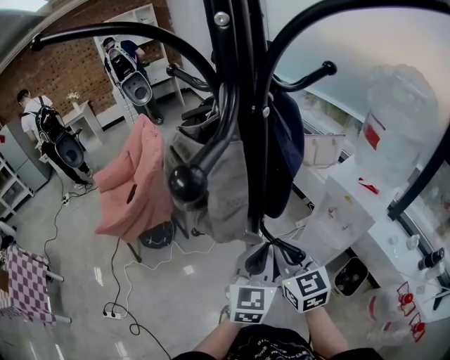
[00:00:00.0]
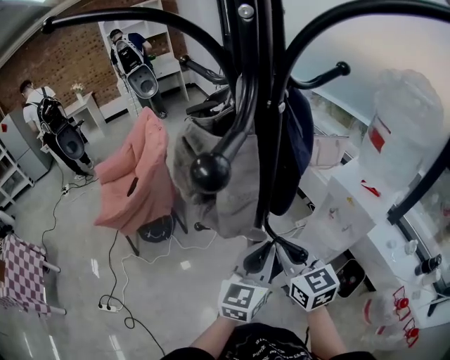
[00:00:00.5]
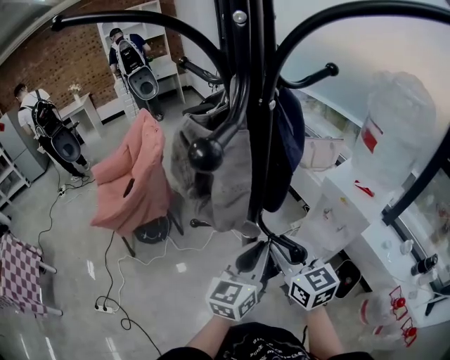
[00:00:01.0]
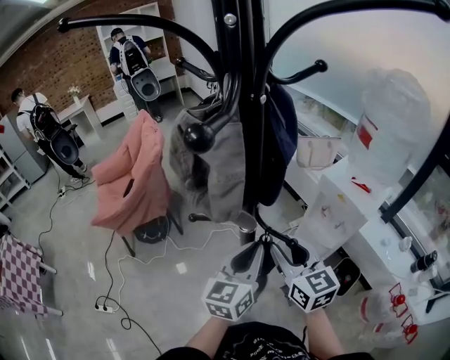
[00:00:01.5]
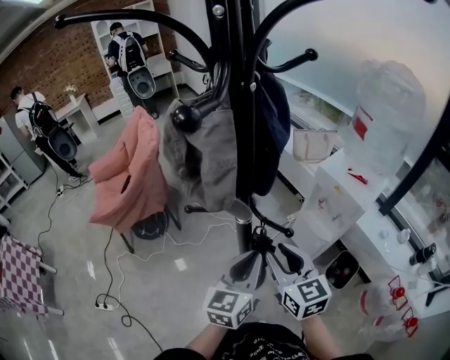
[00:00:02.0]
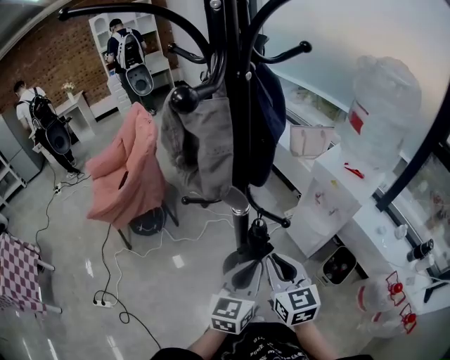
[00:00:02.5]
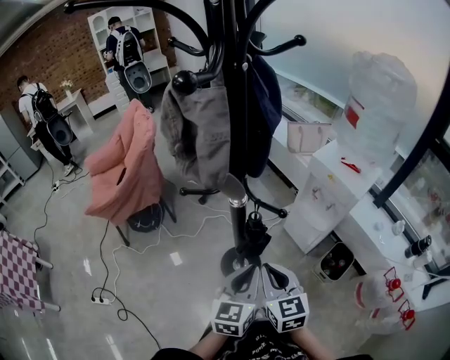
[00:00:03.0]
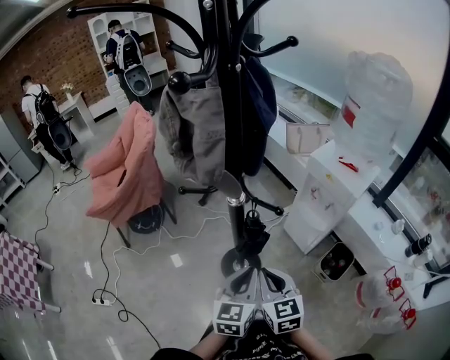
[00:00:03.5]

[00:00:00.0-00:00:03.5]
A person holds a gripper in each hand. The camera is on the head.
00:00:00.0 to 00:00:02.0: The two grippers go approximately 5 cm backward. The right gripper opens.
00:00:02.0 to 00:00:03.5: The right gripper heads backward and downward, covering roughly 10 cm, and closes its fingers; the left gripper is displaced downward and backward by some 10 cm.

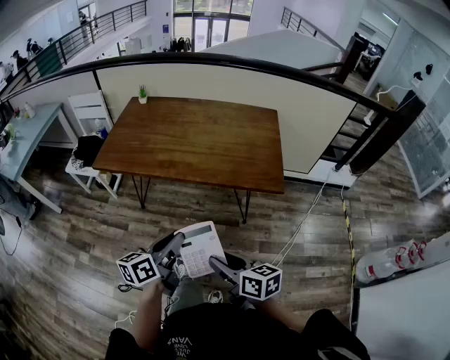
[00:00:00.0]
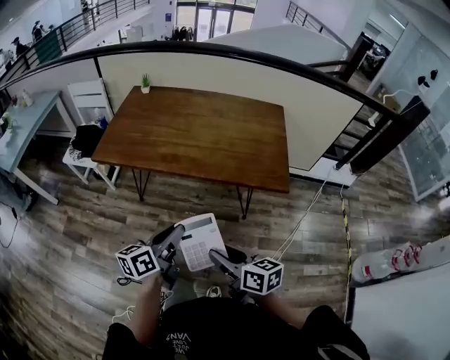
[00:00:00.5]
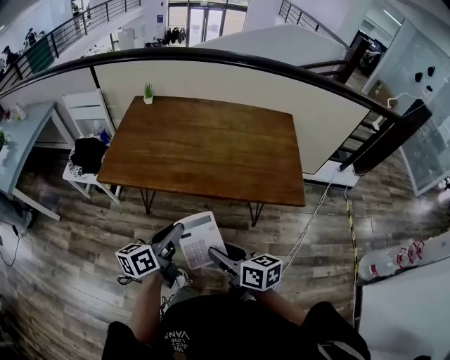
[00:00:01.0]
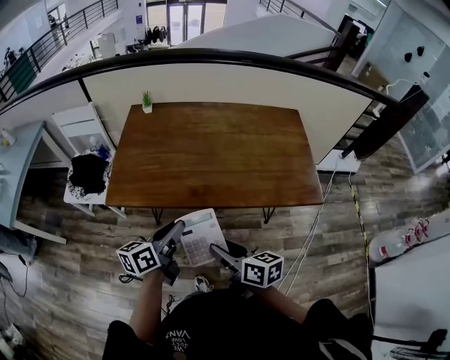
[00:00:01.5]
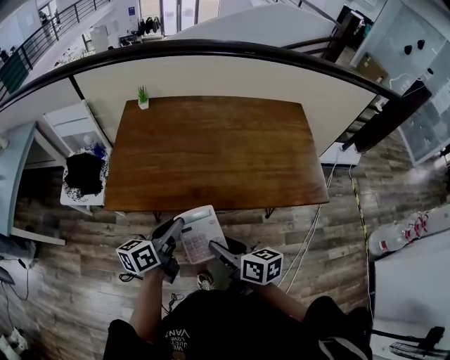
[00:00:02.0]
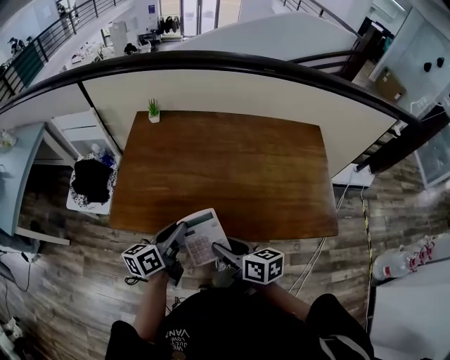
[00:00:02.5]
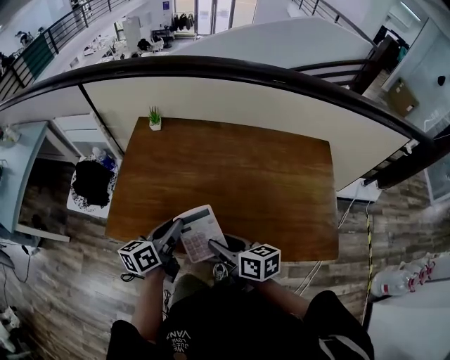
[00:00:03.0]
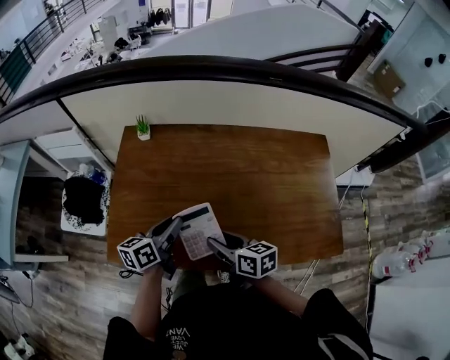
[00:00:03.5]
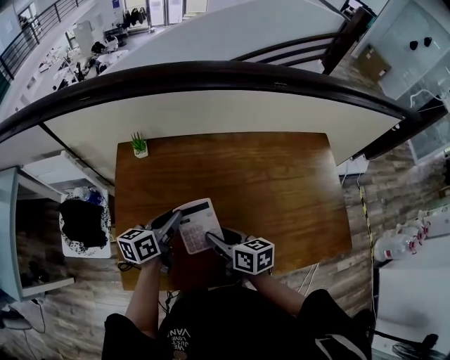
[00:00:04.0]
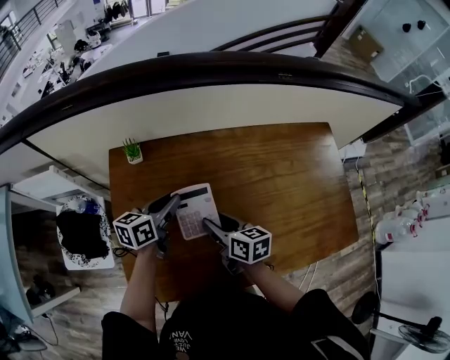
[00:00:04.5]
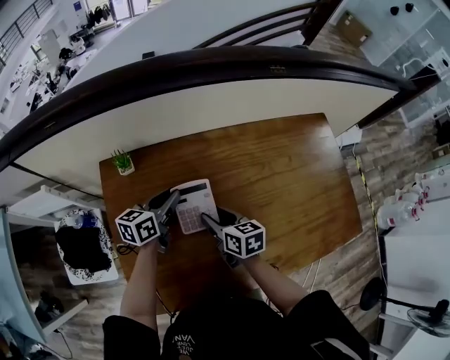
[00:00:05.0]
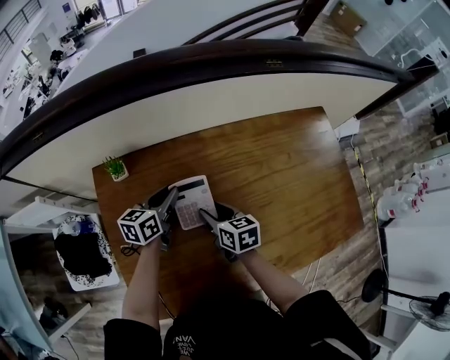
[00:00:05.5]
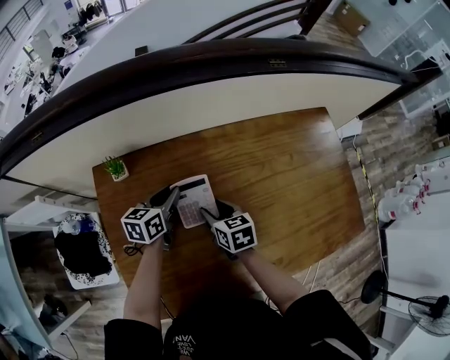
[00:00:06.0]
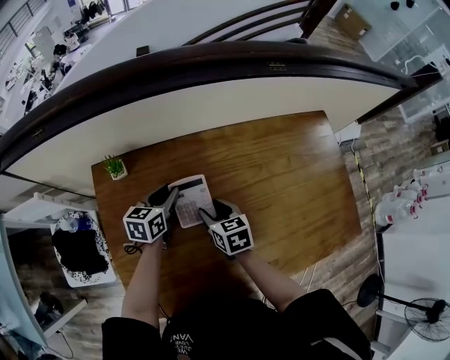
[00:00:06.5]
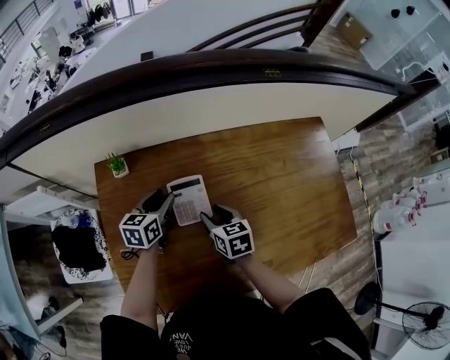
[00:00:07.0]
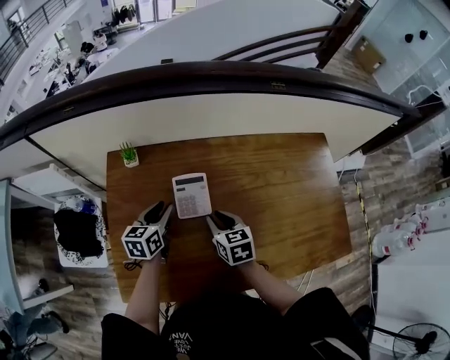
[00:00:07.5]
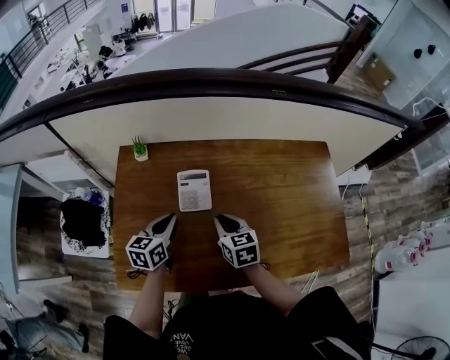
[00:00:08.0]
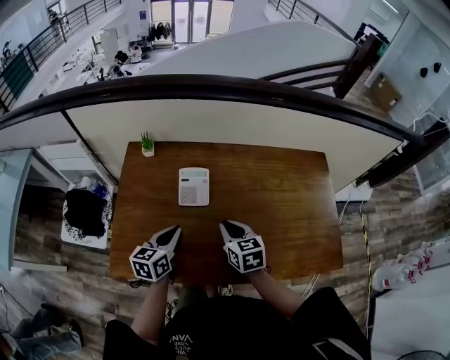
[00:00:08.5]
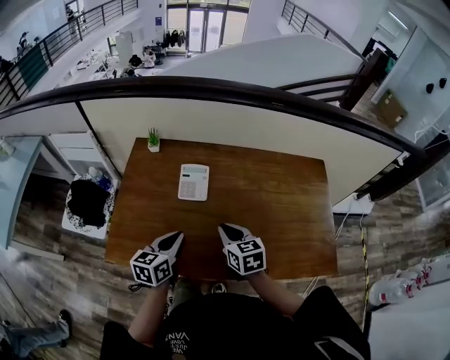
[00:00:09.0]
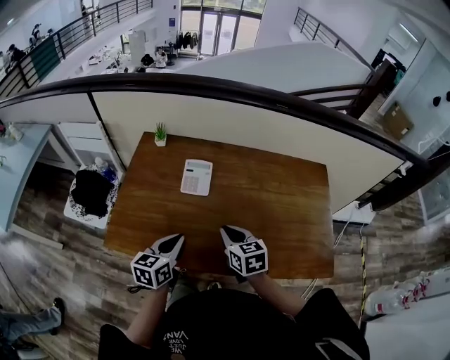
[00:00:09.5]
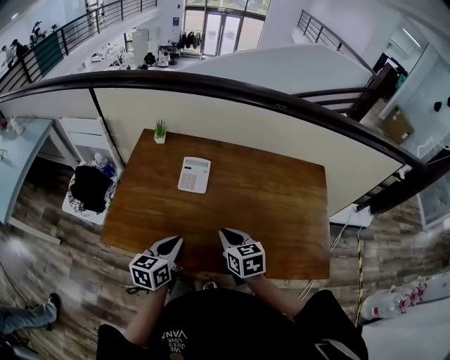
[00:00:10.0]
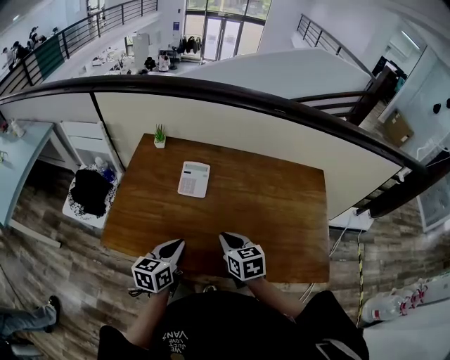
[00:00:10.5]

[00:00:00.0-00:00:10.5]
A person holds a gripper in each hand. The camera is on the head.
00:00:00.0 to 00:00:02.0: Both grippers travel together forward and to the left, approximately 35 cm.
00:00:02.0 to 00:00:04.0: Both grippers travel together forward, roughly 35 cm.
00:00:04.0 to 00:00:06.5: Both grippers travel together forward and downward, about 15 cm. The left gripper swivels about 20 degrees; the right gripper turns by some 20 degrees.
00:00:06.5 to 00:00:08.5: The right gripper moves backward, upward and to the right, approximately 15 cm, and closes its fingers, while the left gripper moves backward, approximately 25 cm.
00:00:08.5 to 00:00:10.5: The left gripper shifts about 10 cm backward and to the right; the right gripper shifts about 10 cm backward.

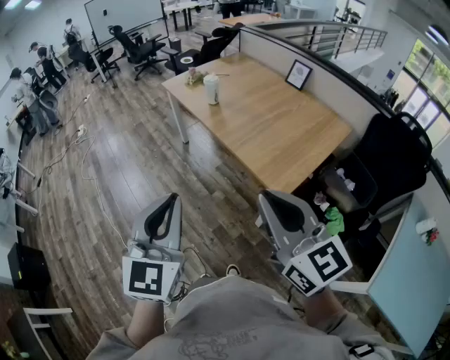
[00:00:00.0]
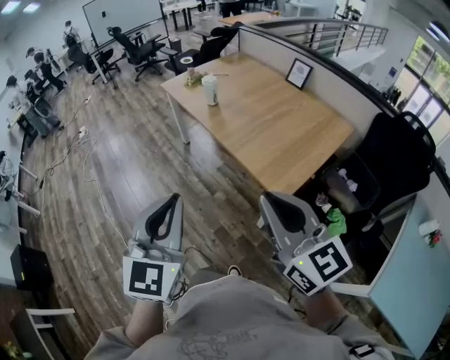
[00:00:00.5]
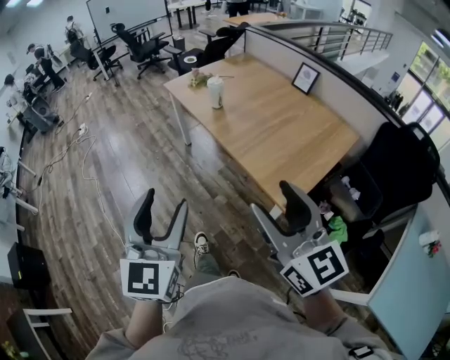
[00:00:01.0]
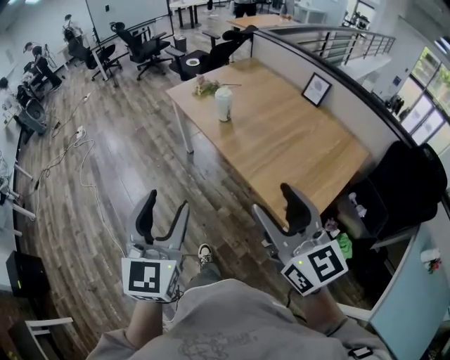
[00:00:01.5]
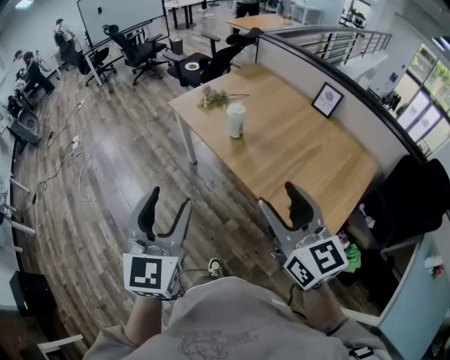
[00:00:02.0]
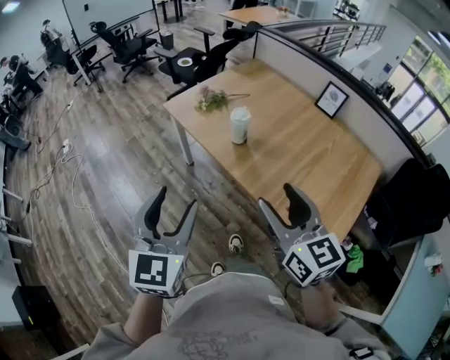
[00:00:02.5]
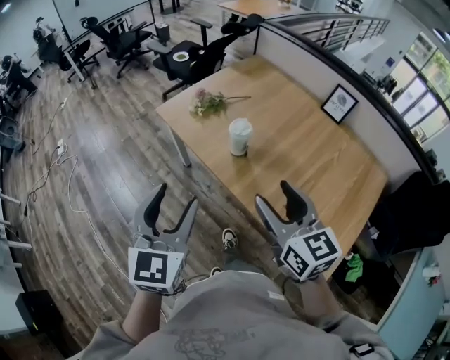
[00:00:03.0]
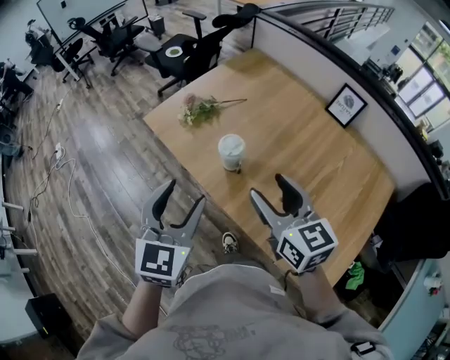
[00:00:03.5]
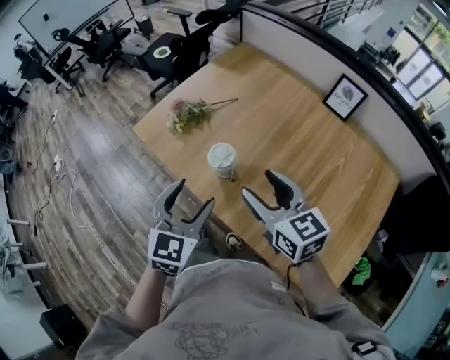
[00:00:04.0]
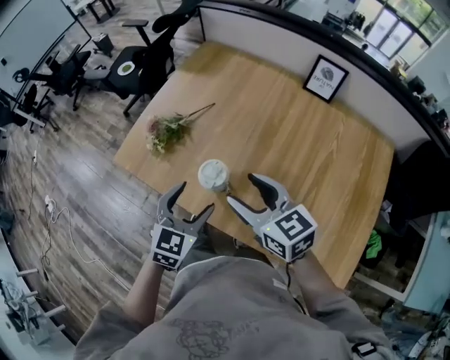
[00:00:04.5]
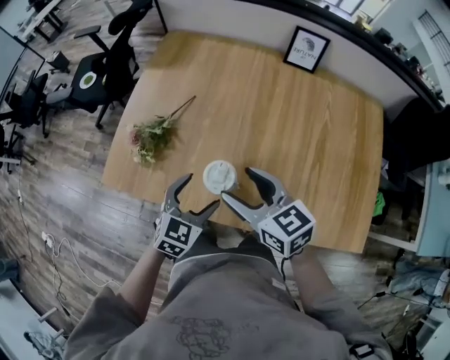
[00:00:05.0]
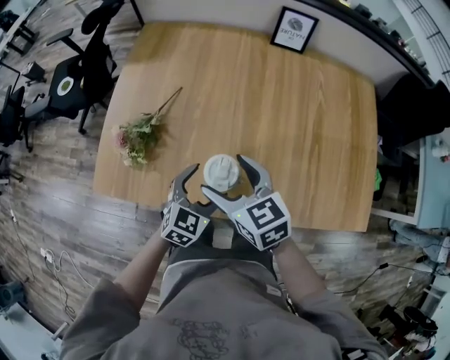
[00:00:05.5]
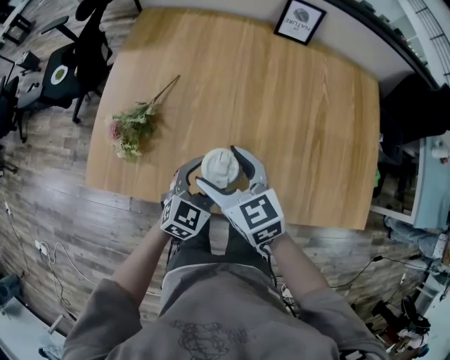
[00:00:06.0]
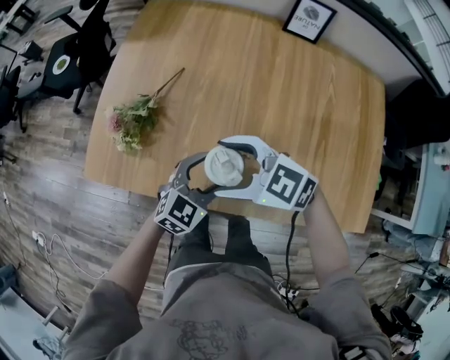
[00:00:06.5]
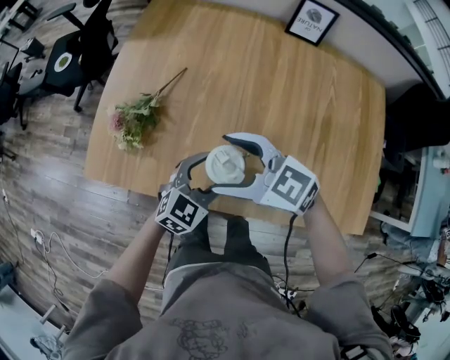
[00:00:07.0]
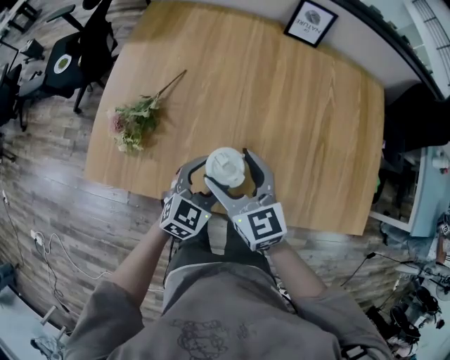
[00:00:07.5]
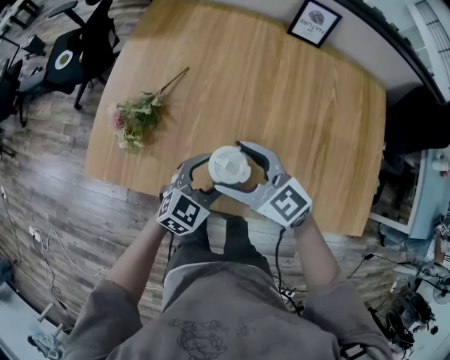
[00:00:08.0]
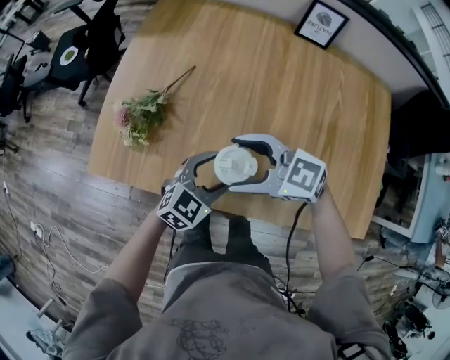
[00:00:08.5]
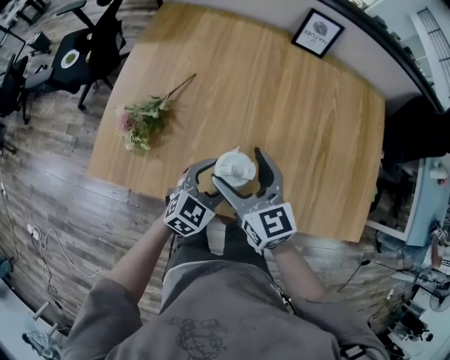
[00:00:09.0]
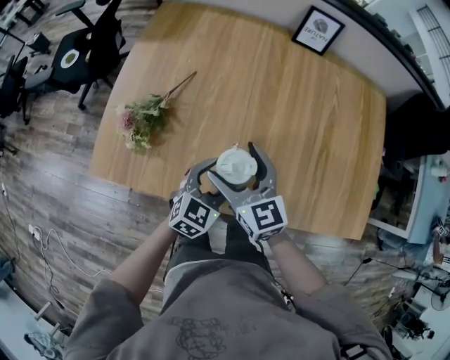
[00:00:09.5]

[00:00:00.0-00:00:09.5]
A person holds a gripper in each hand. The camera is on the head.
00:00:00.0 to 00:00:02.0: The grippers both shift forward by about 35 cm. The right gripper opens. The left gripper opens its fingers.
00:00:02.0 to 00:00:04.0: The two grippers travel together, forward, approximately 40 cm. The left gripper swivels about 30 degrees.
00:00:04.0 to 00:00:05.5: The left gripper shifts roughly 20 cm downward, and turns by about 50 degrees. The right gripper moves about 20 cm, and turns by some 30 degrees.

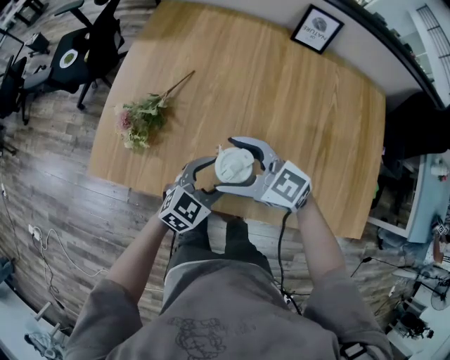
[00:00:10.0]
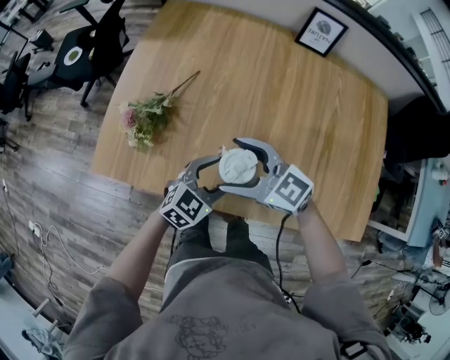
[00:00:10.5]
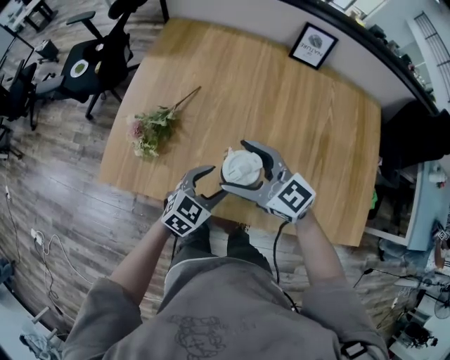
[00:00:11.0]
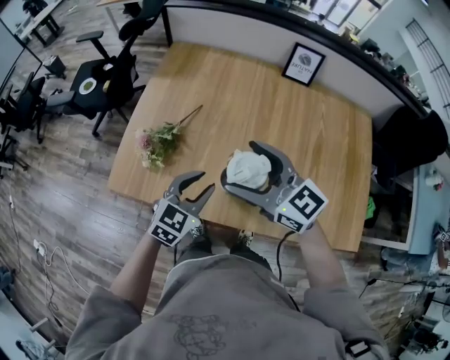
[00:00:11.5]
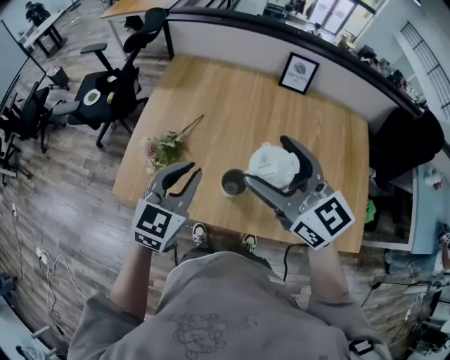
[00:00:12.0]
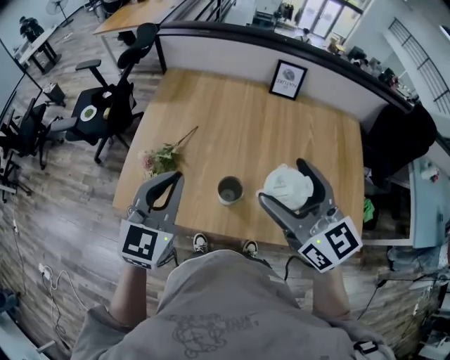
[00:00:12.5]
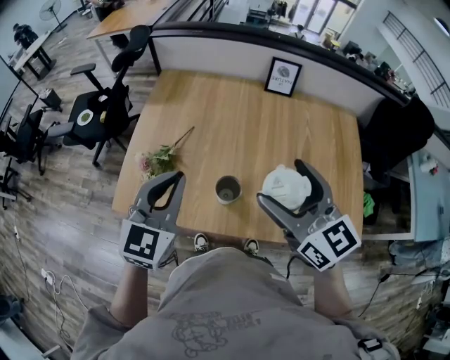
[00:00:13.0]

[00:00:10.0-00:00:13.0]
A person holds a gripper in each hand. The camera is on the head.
00:00:10.0 to 00:00:11.5: The left gripper moves upward and to the left, approximately 10 cm. Meanwhile the right gripper shifts roughly 15 cm upward.
00:00:11.5 to 00:00:13.0: The right gripper goes about 15 cm upward, to the right and backward, and swivels approximately 20 degrees; the left gripper shifts about 20 cm upward.
